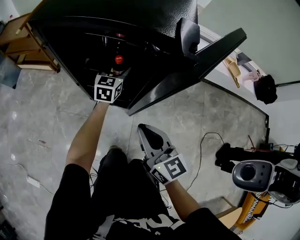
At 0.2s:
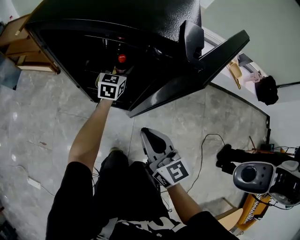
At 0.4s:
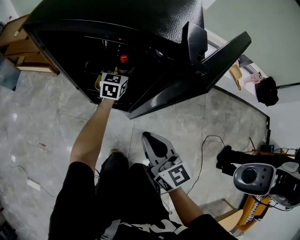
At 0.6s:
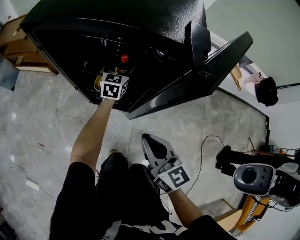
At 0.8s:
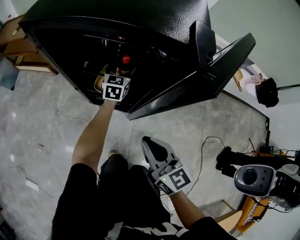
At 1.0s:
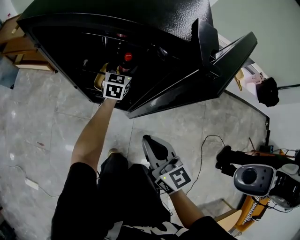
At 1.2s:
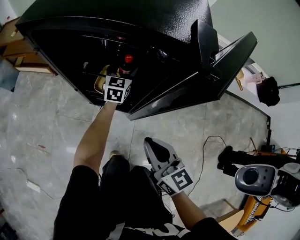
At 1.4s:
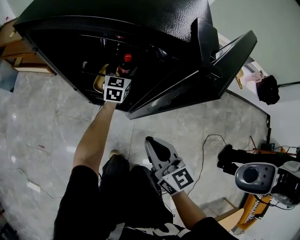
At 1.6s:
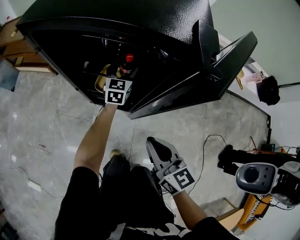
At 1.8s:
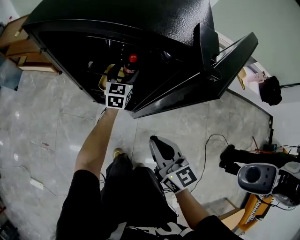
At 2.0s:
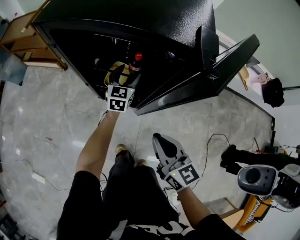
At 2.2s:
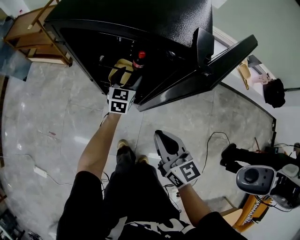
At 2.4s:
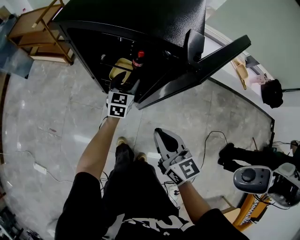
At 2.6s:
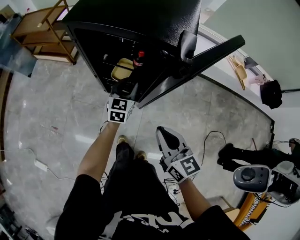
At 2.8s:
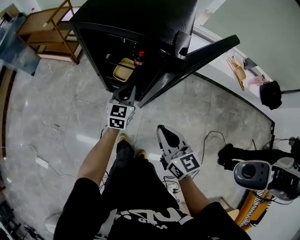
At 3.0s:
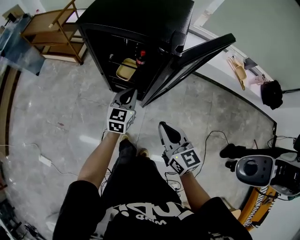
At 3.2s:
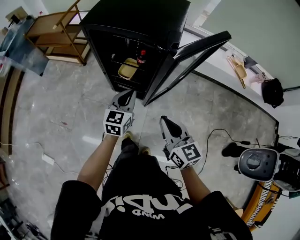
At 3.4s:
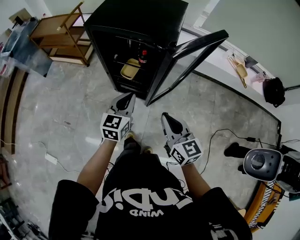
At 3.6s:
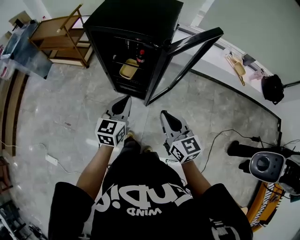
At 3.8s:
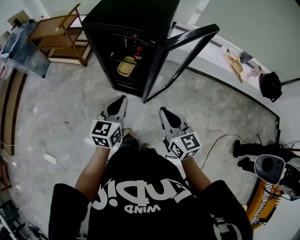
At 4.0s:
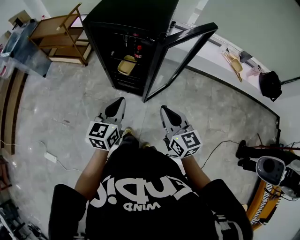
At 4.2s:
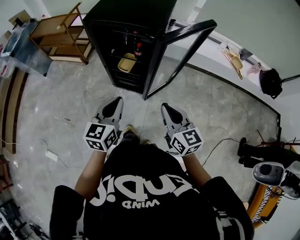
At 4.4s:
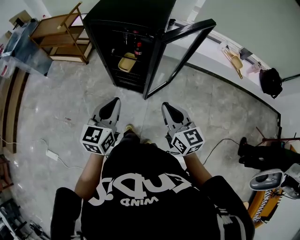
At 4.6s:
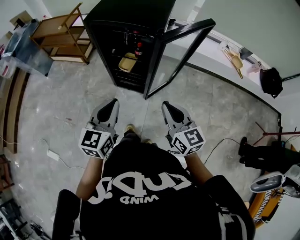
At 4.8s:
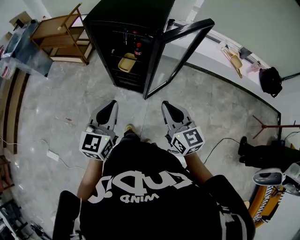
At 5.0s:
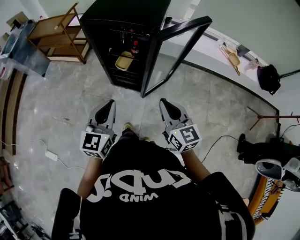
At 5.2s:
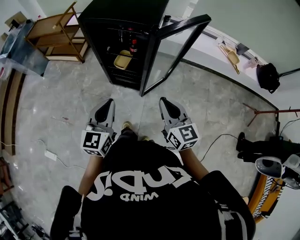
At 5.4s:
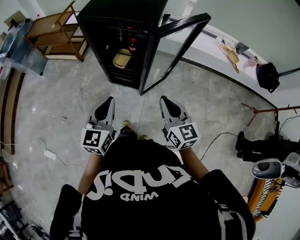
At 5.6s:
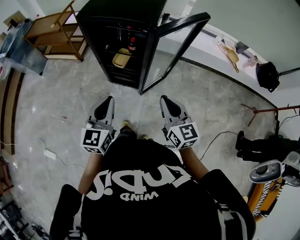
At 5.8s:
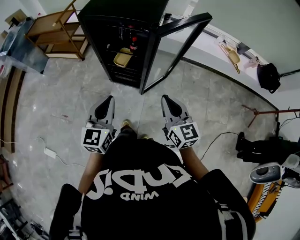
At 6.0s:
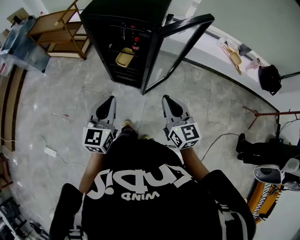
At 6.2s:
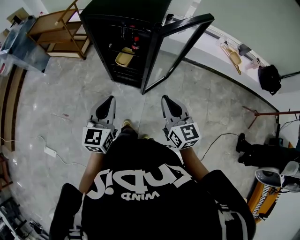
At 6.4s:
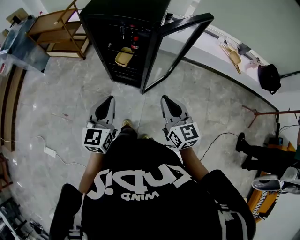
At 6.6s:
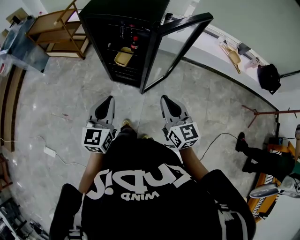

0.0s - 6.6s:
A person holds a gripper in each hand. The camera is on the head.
0.0s - 1.6s: The left gripper moves approximately 5 cm.
1.6s - 3.2s: The right gripper goes approximately 15 cm upward and backward, while the left gripper heads backward and upward, covering approximately 35 cm, and closes.
3.2s - 5.0s: The right gripper is displaced backward and upward by some 10 cm, while the left gripper goes some 20 cm backward and upward.
5.0s - 6.6s: The grippers make only small movements.

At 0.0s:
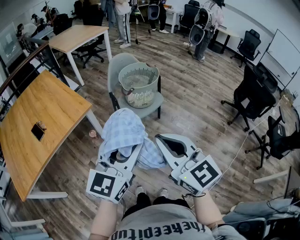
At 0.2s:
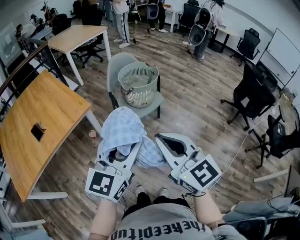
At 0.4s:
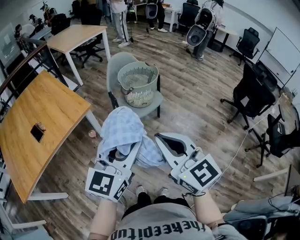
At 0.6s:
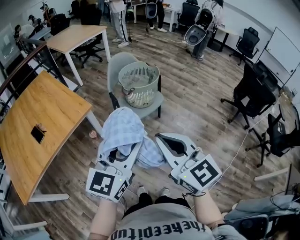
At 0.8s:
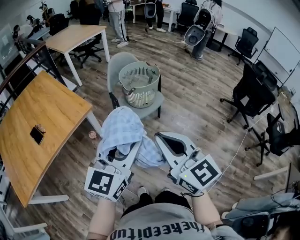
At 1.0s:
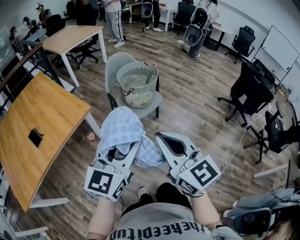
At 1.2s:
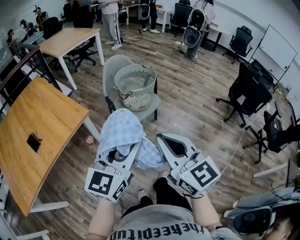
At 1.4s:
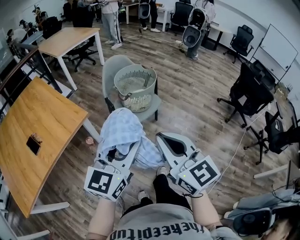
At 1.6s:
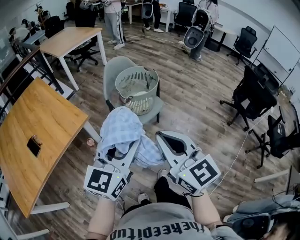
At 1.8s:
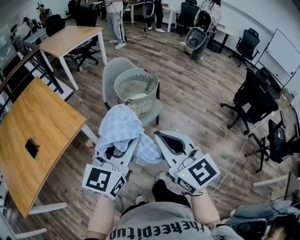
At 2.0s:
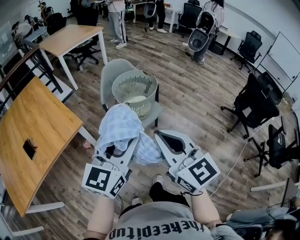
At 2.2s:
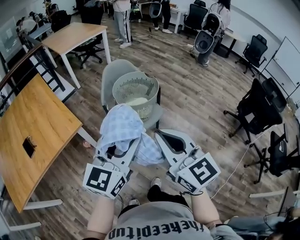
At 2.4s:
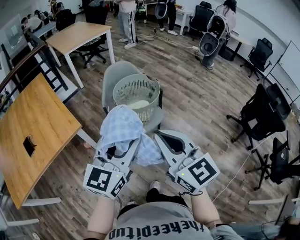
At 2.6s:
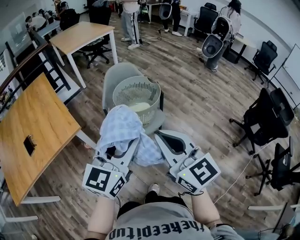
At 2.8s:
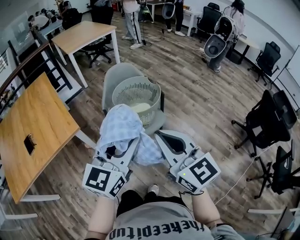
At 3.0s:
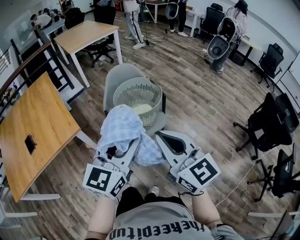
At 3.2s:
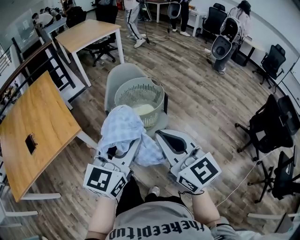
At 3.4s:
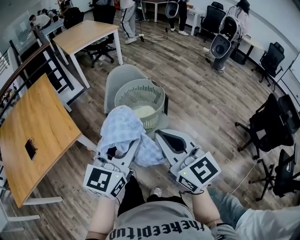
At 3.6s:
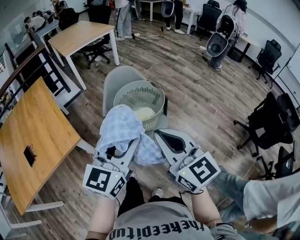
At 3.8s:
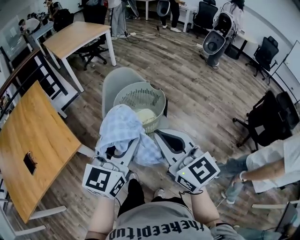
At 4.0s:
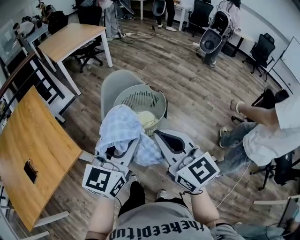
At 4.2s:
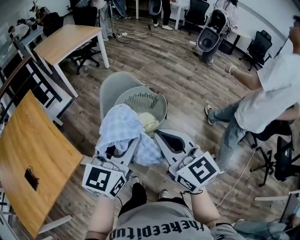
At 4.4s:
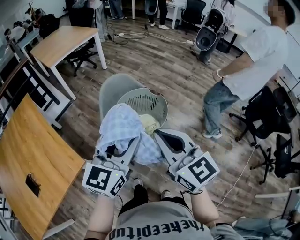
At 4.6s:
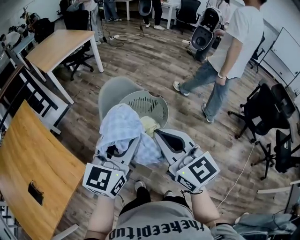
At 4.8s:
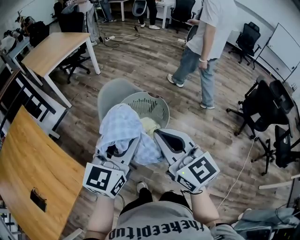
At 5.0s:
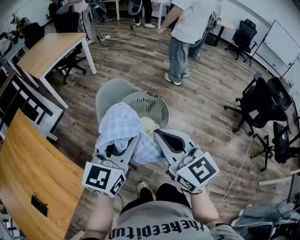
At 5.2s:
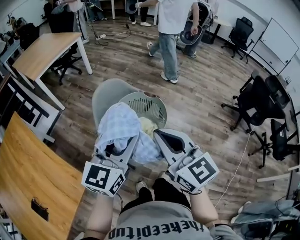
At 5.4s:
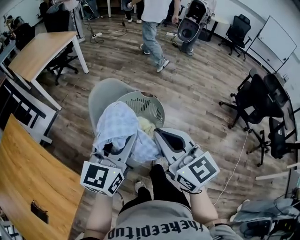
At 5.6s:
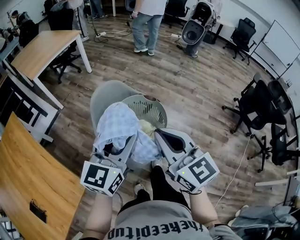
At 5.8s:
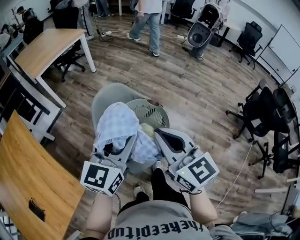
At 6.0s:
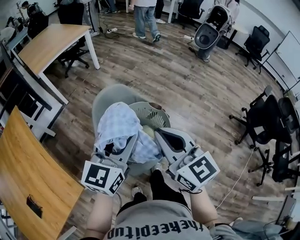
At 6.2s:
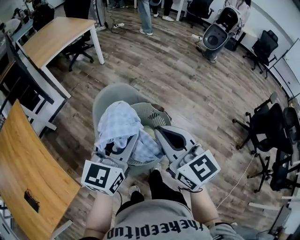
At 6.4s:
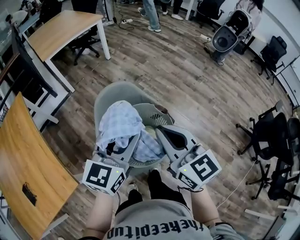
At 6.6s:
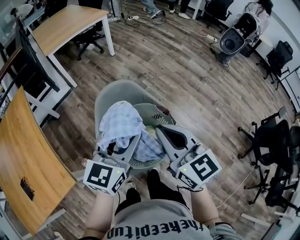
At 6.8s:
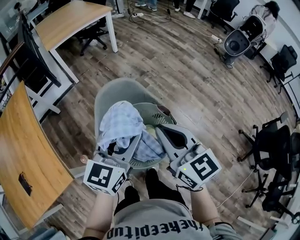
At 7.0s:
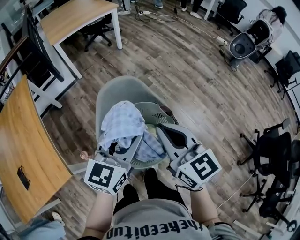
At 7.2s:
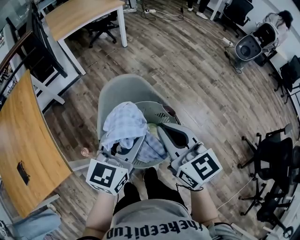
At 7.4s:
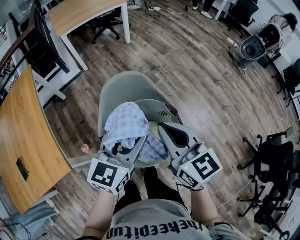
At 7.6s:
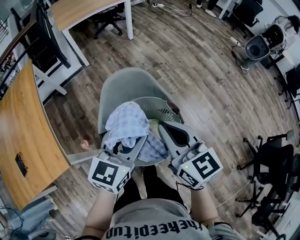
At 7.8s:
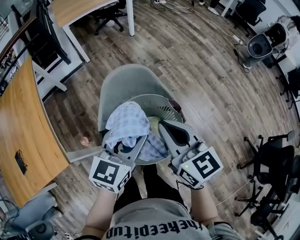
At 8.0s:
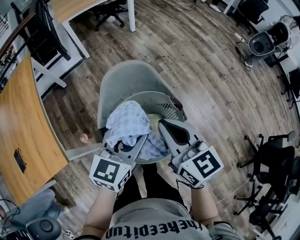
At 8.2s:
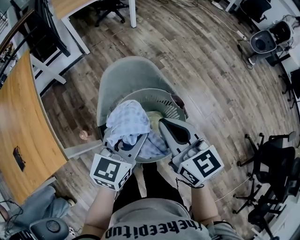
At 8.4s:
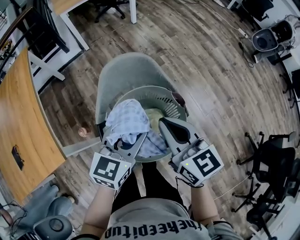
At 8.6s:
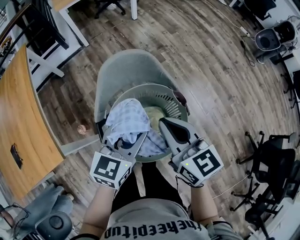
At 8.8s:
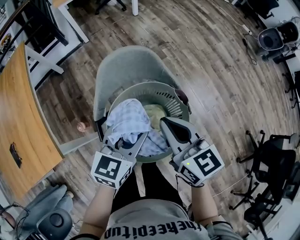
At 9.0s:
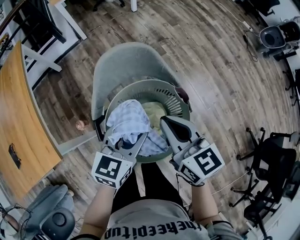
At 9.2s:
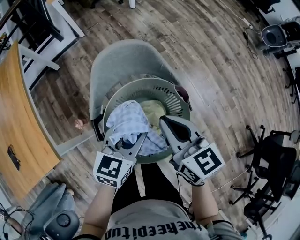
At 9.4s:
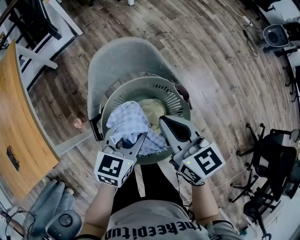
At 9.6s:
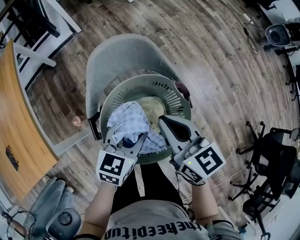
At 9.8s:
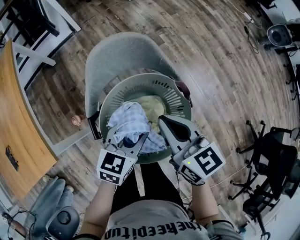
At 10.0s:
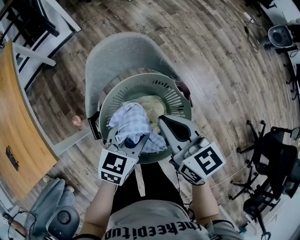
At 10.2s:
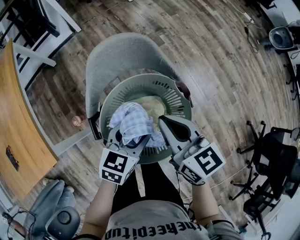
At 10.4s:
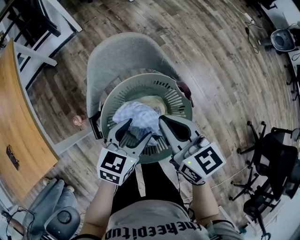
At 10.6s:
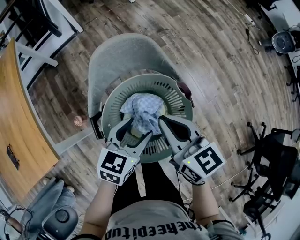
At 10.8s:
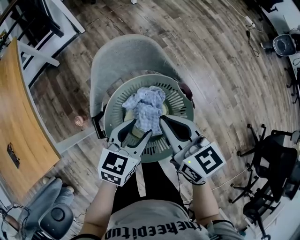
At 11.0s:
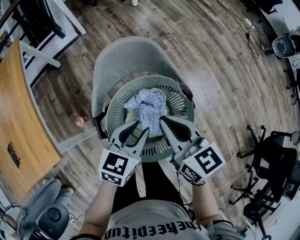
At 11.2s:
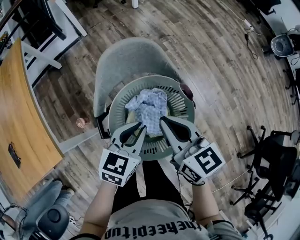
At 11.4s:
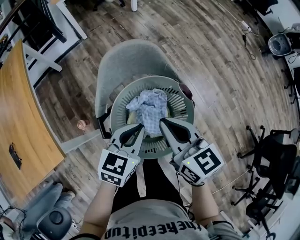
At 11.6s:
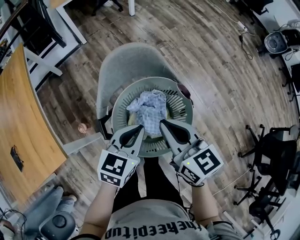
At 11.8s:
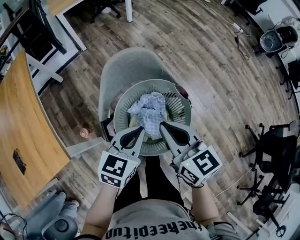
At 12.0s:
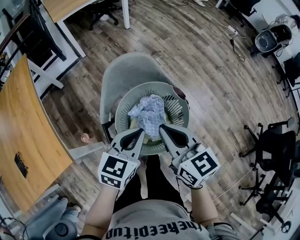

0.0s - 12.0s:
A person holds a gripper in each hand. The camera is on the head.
0.0s - 1.6s: The two grippers go about 10 cm forward.
1.6s - 3.0s: Both grippers travel together forward and to the right, roughly 20 cm.
3.0s - 4.4s: Both grippers travel together forward, some 15 cm.
4.4s - 6.0s: The grippers both shift forward by approximately 15 cm.
6.0s - 7.6s: The left gripper goes approximately 10 cm downward. Meanwhile the right gripper goes about 10 cm forward and downward, and swivels approximately 20 degrees.
7.6s - 9.0s: The grippers both shift downward by approximately 10 cm.
9.0s - 10.4s: The left gripper is displaced downward by approximately 5 cm.
10.4s - 12.0s: The left gripper moves upward, approximately 10 cm, and closes its fingers; the right gripper is displaced backward and upward by approximately 10 cm.

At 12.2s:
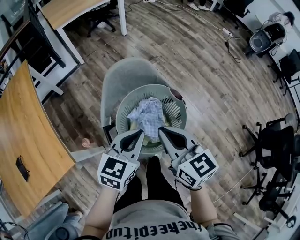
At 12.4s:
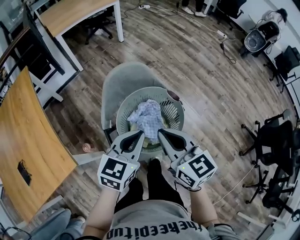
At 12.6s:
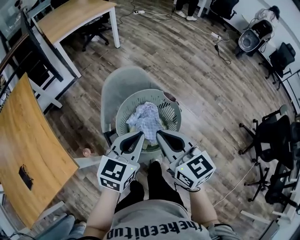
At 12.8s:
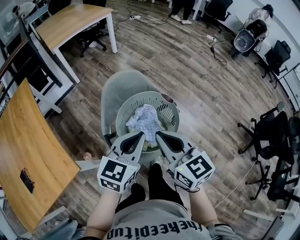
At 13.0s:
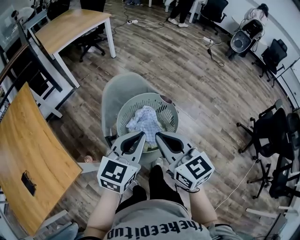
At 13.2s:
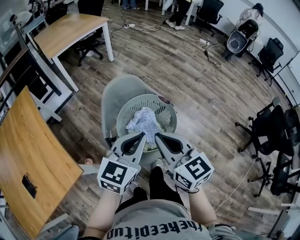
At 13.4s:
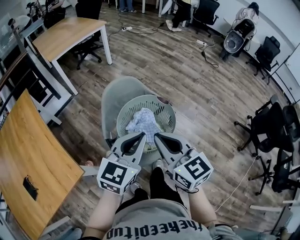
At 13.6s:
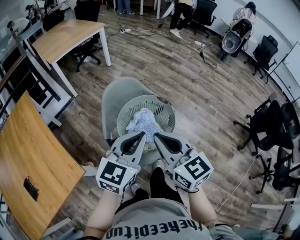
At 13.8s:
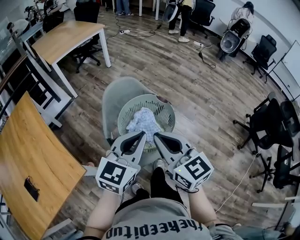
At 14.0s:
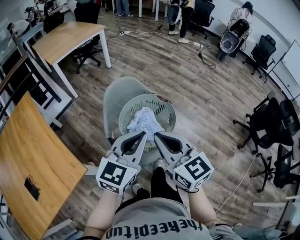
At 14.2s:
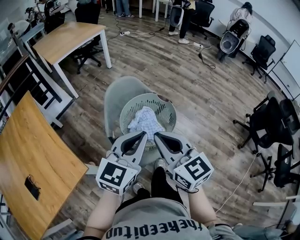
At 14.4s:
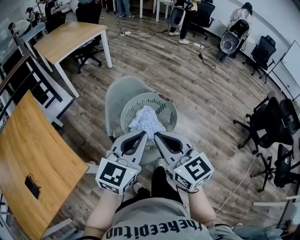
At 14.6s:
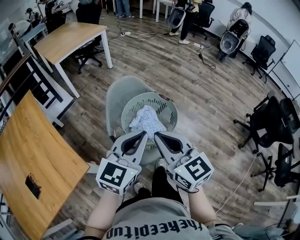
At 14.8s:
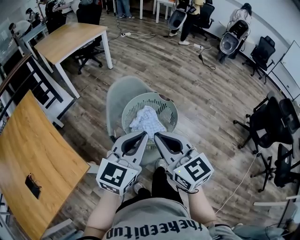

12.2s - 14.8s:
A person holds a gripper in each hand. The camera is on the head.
12.2s - 13.4s: The left gripper travels upward and backward by some 10 cm. Meanwhile the right gripper moves backward and upward, about 10 cm.
13.4s - 14.8s: The right gripper ends up approximately 5 cm from where it was; the left gripper changes place by about 5 cm.

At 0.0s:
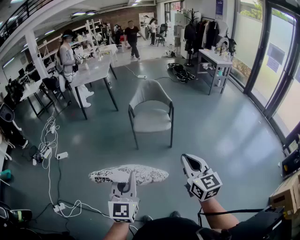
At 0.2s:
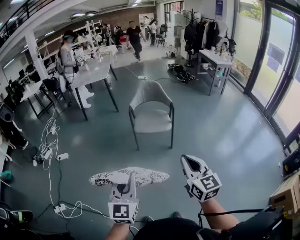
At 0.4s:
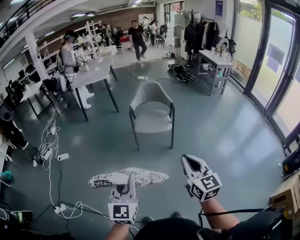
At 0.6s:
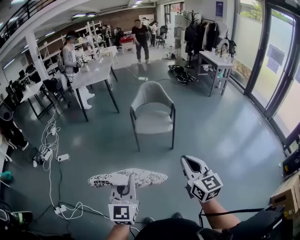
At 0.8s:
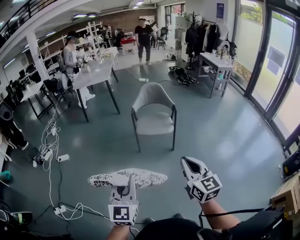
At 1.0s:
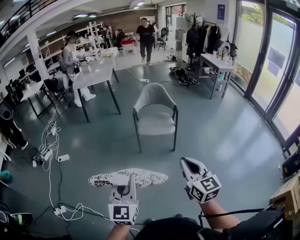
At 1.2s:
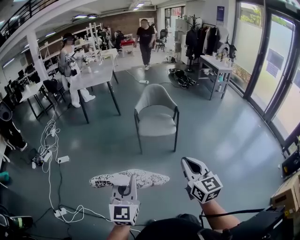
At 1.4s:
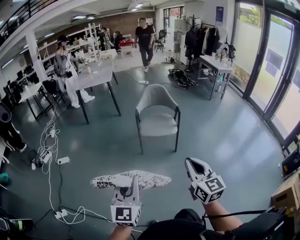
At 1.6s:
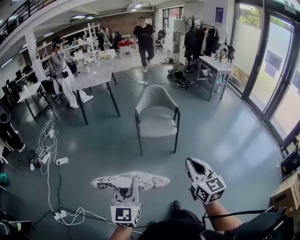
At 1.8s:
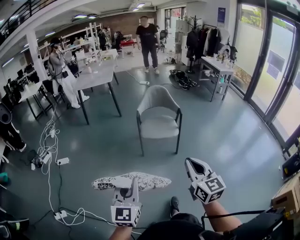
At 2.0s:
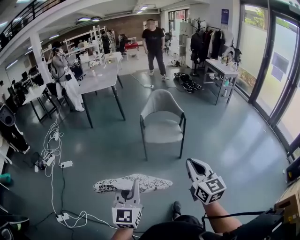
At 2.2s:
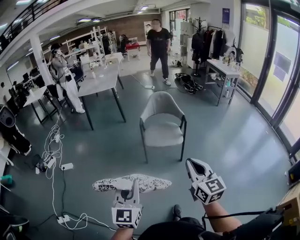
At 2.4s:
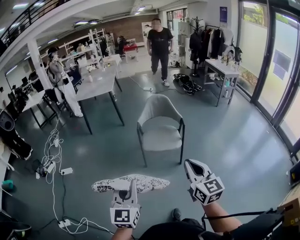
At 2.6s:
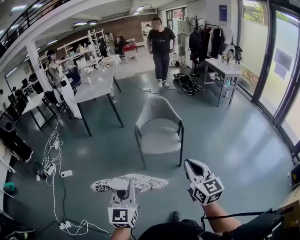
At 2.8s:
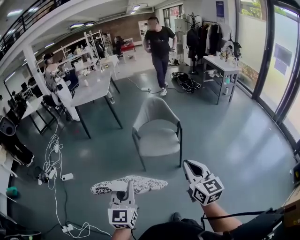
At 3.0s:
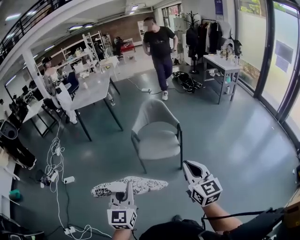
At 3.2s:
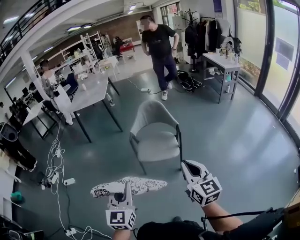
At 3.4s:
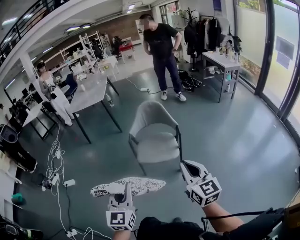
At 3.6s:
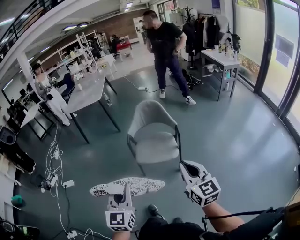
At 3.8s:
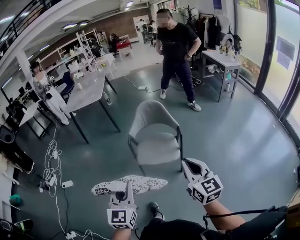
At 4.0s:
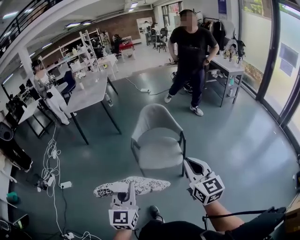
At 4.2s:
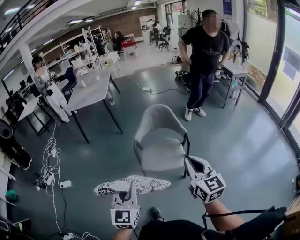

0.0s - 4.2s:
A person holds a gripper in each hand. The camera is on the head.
0.0s - 1.4s: The two grippers go roughly 10 cm to the left.
1.4s - 2.8s: The right gripper moves forward and to the right, approximately 25 cm. Meanwhile the left gripper travels forward by approximately 20 cm.
2.8s - 4.2s: The two grippers go some 20 cm forward.
